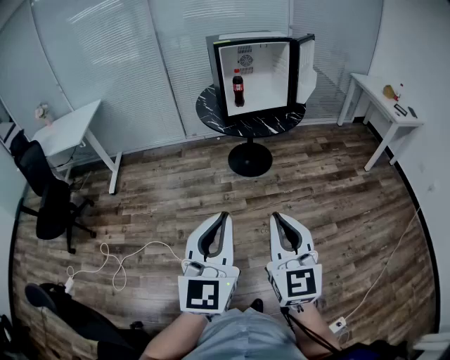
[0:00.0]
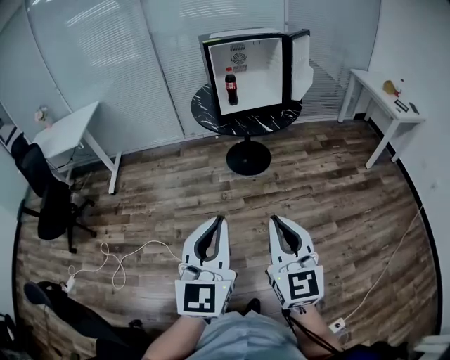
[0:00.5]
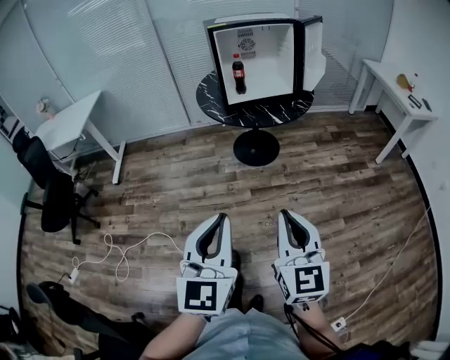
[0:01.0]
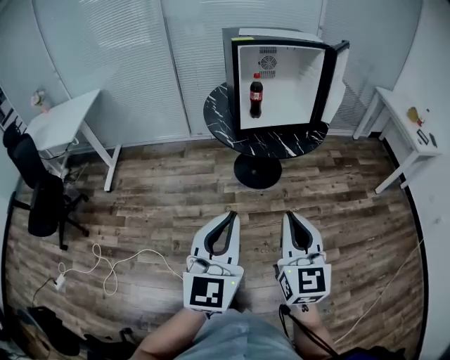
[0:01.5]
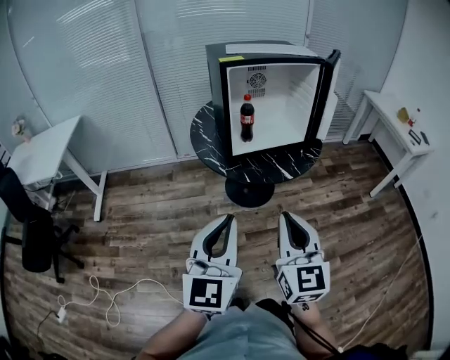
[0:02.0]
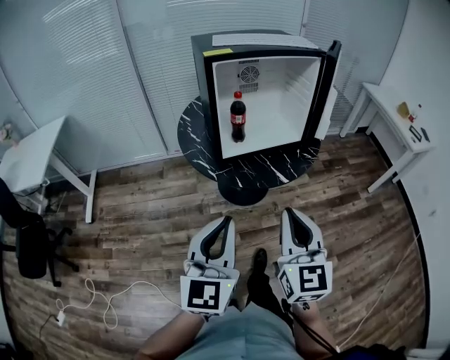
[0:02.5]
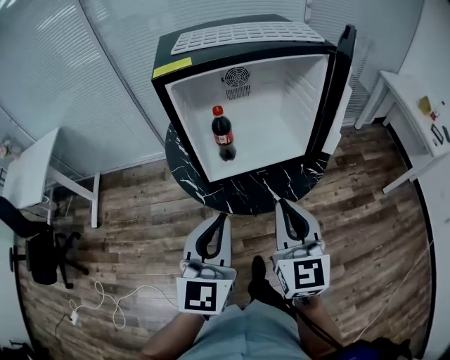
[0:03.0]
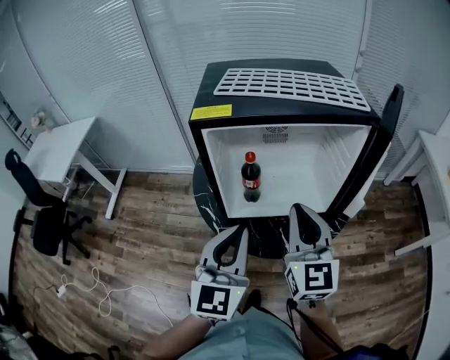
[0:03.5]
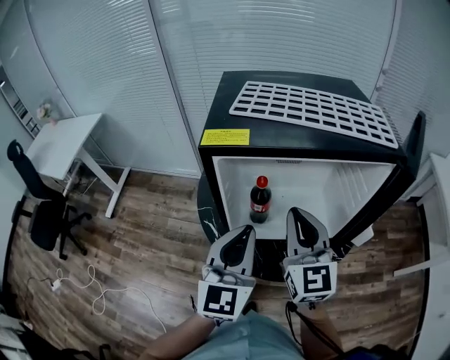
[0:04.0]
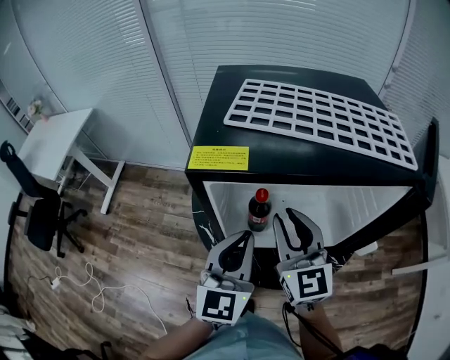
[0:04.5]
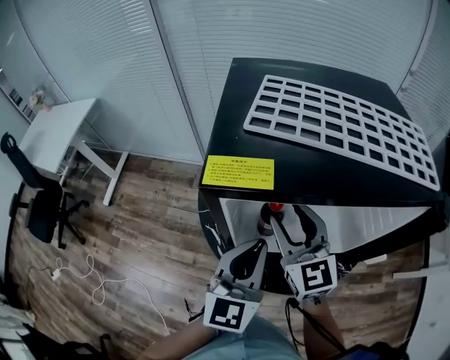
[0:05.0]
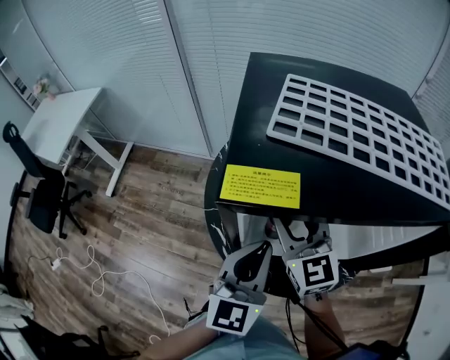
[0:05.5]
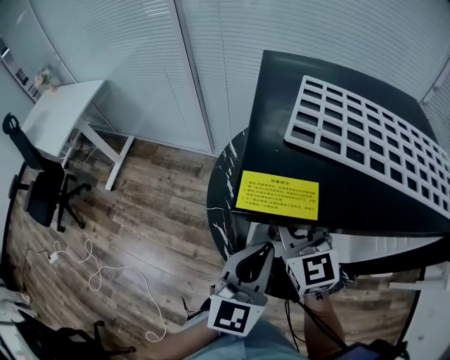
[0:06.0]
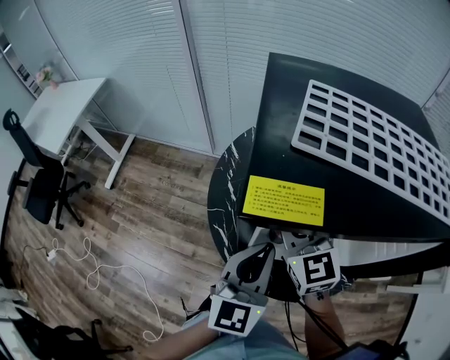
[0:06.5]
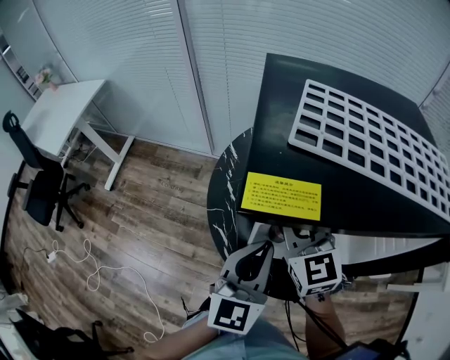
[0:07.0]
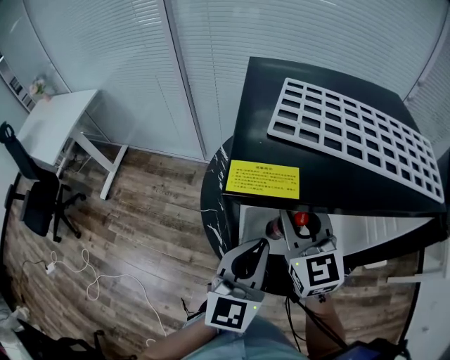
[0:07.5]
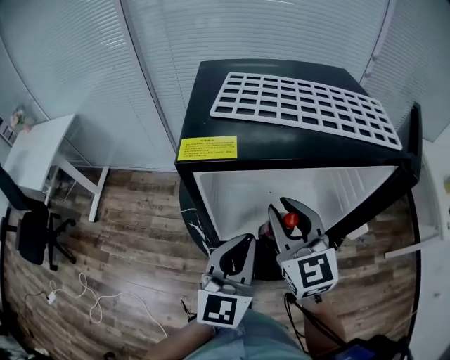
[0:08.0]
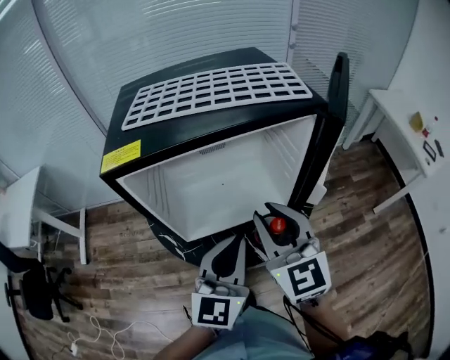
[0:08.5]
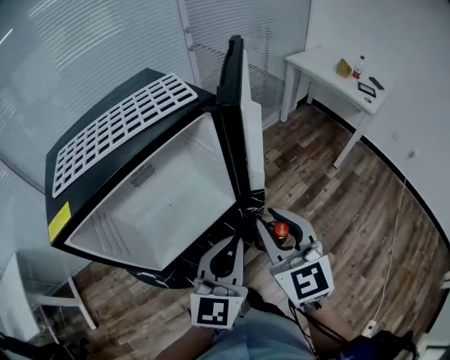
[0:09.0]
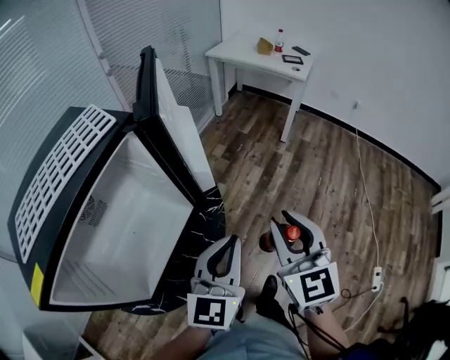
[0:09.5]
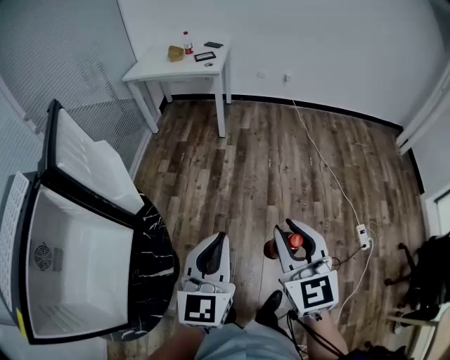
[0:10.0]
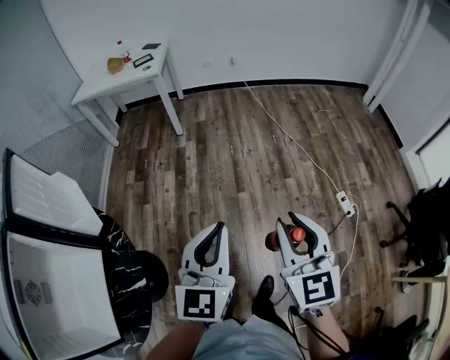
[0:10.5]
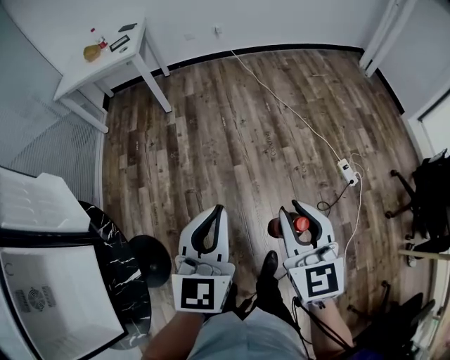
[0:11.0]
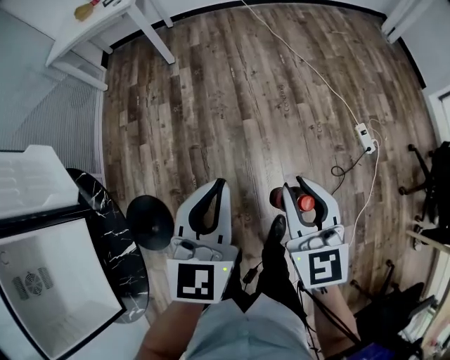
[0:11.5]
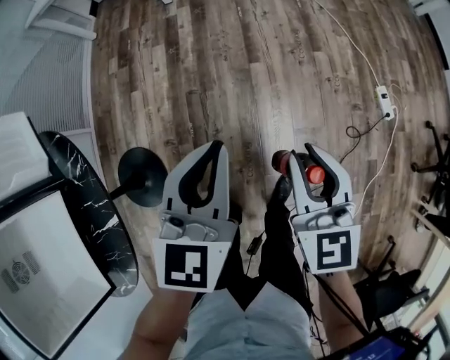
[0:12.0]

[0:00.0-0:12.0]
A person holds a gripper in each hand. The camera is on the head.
0:00.0 to 0:02.0: Both grippers move forward, some 35 cm.
0:02.0 to 0:04.0: Both grippers are carried forward, some 40 cm.
0:04.0 to 0:06.0: The left gripper moves forward and downward, roughly 10 cm. The right gripper is displaced forward, to the left and downward by approximately 20 cm, and opens its fingers.
0:06.0 to 0:08.0: The right gripper moves backward, to the right and upward, roughly 15 cm. Meanwhile the left gripper moves backward, about 5 cm.
0:08.0 to 0:10.0: The pair of grippers is taken roughly 50 cm. The right gripper changes its angle by about 90 degrees; the left gripper rotates about 80 degrees.
0:10.0 to 0:12.0: Both grippers travel together downward and to the right, roughly 30 cm. The left gripper rotates approximately 20 degrees; the right gripper changes its angle by approximately 20 degrees.

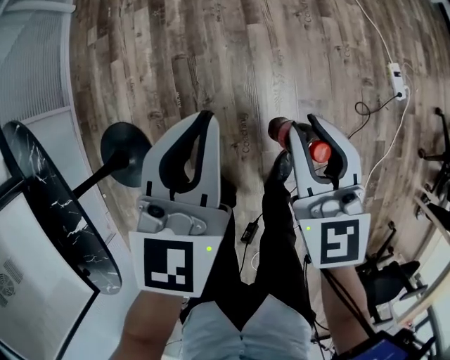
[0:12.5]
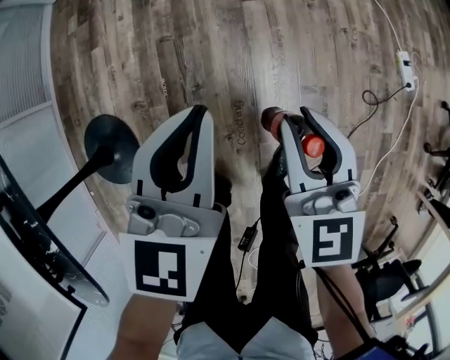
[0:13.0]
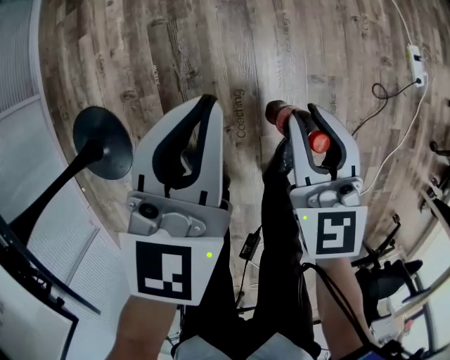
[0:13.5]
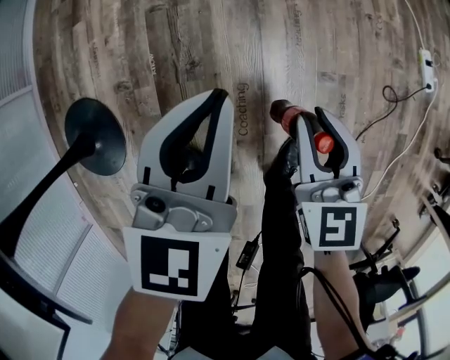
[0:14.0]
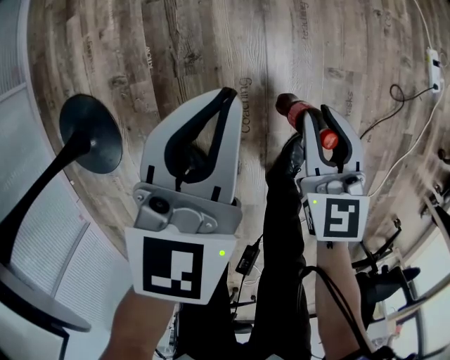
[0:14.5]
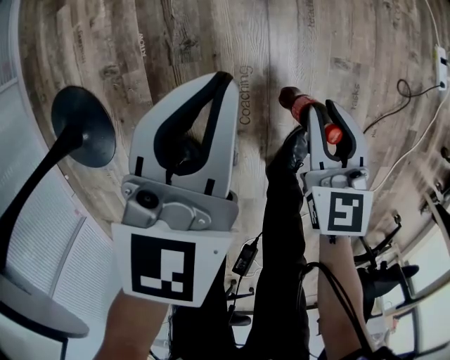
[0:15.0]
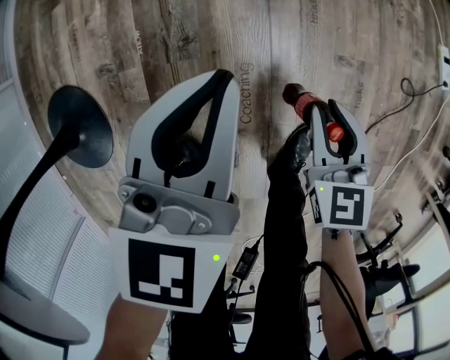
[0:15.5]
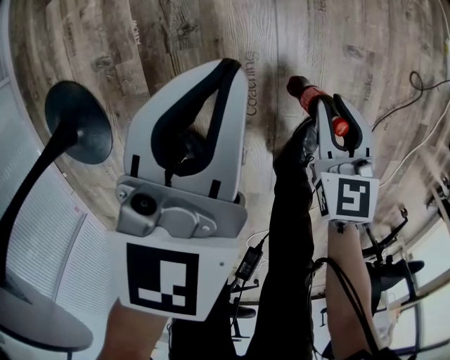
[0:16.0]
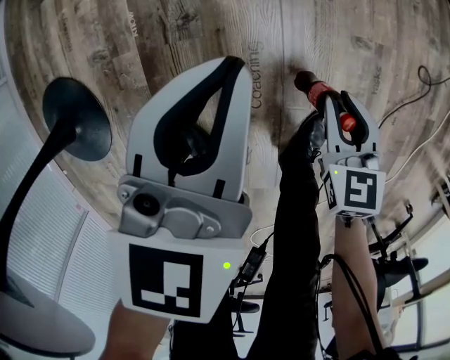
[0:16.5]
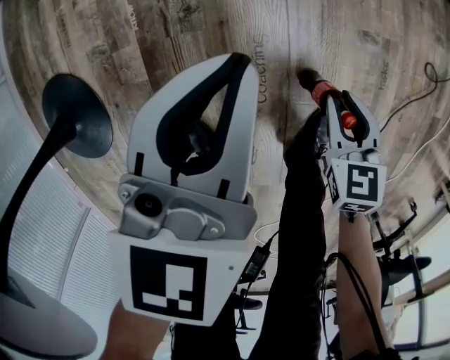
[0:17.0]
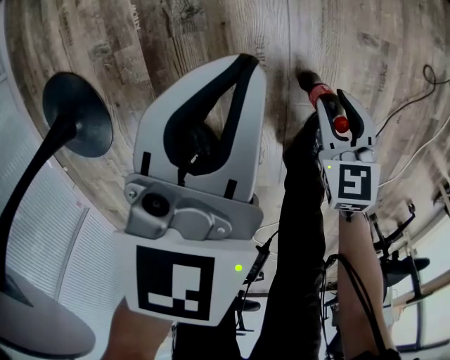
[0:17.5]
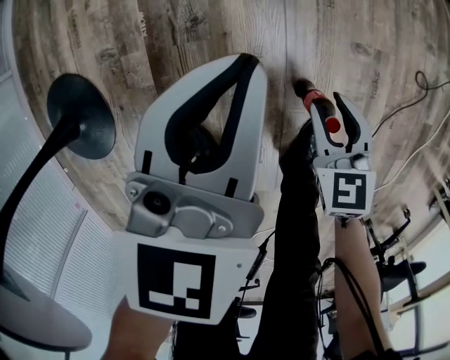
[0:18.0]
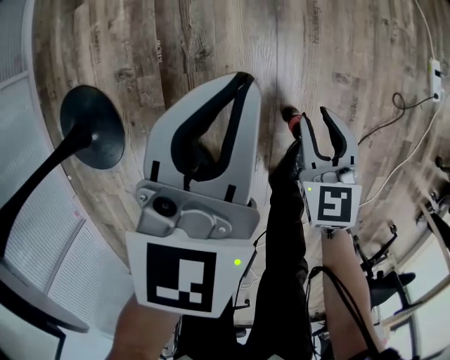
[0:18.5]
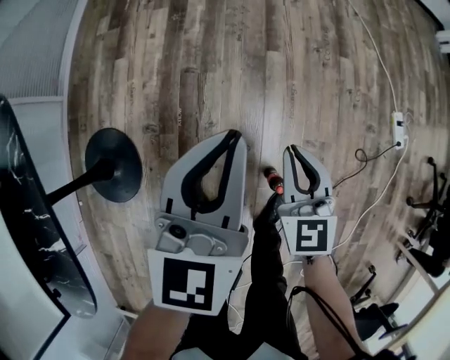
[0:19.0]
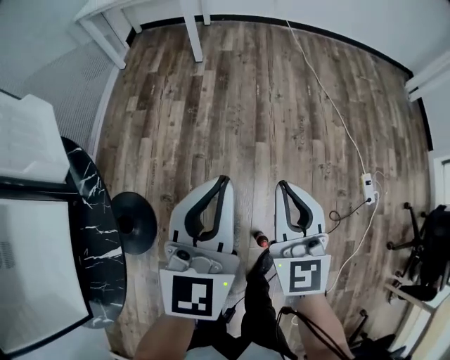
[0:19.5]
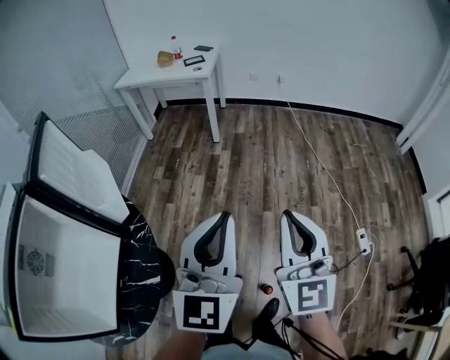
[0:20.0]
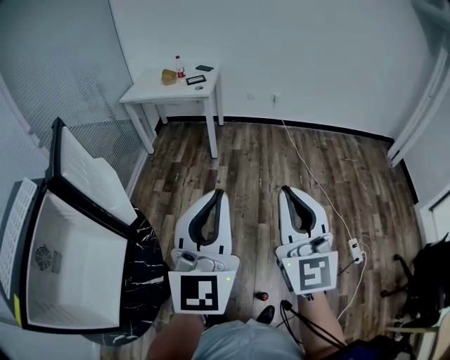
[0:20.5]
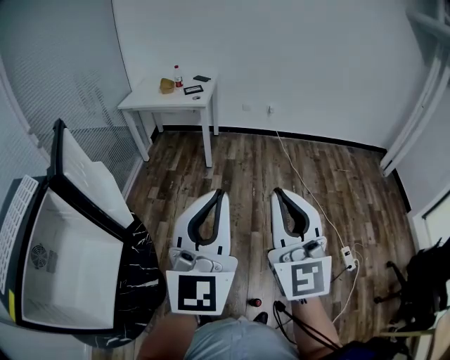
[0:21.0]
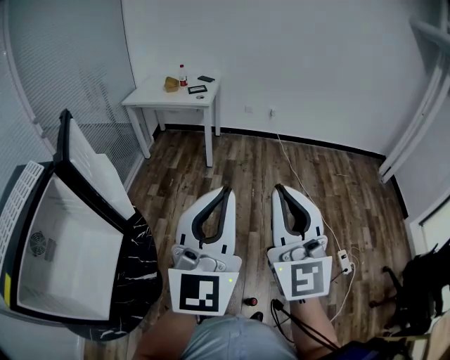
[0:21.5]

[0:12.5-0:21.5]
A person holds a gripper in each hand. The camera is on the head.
0:12.5 to 0:14.5: The grippers both shift downward by approximately 30 cm.
0:14.5 to 0:17.0: The left gripper moves downward, about 10 cm. The right gripper travels downward and backward by approximately 20 cm.
0:17.0 to 0:19.5: Both grippers move upward, about 60 cm. The left gripper tips its fingers upward by about 30 degrees; the right gripper points its fingers approximately 50 degrees further upward, and closes.
0:19.5 to 0:21.5: The grippers both shift upward by some 35 cm. The right gripper changes its angle by about 30 degrees; the left gripper turns by about 20 degrees.

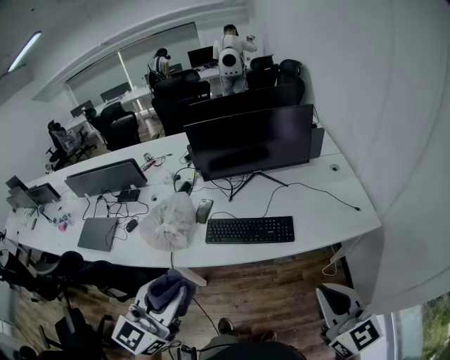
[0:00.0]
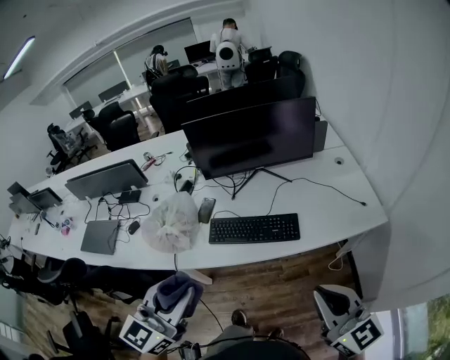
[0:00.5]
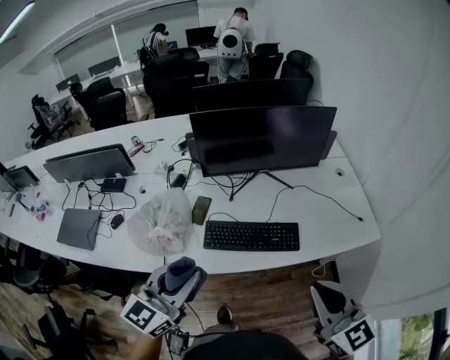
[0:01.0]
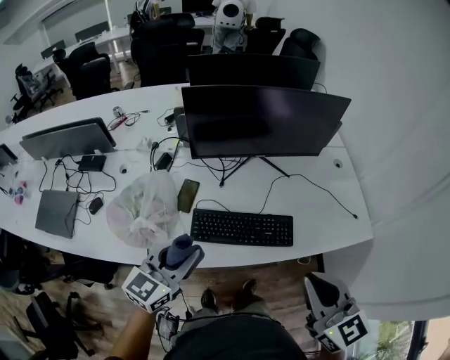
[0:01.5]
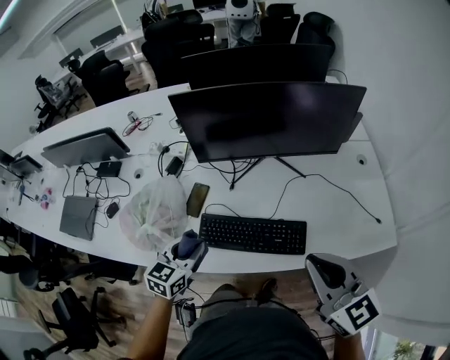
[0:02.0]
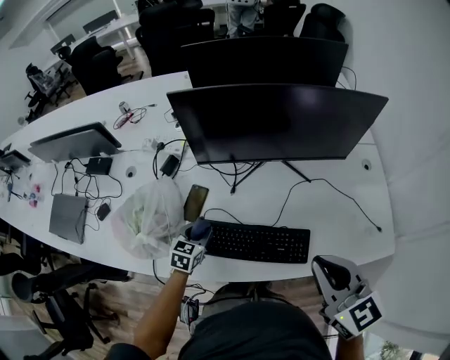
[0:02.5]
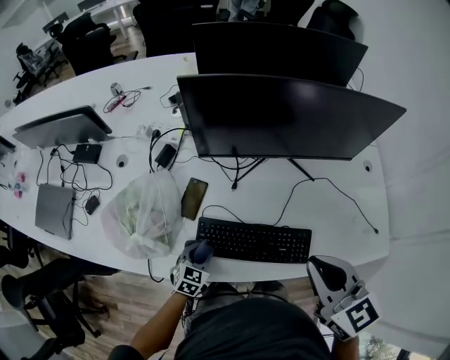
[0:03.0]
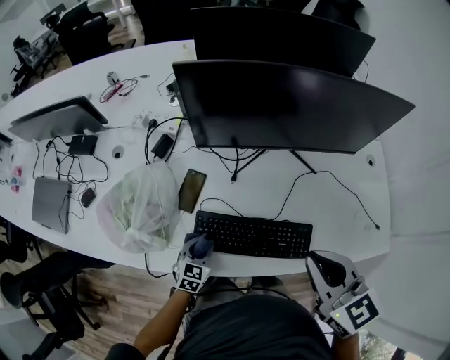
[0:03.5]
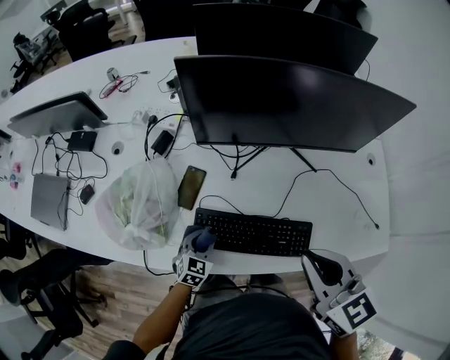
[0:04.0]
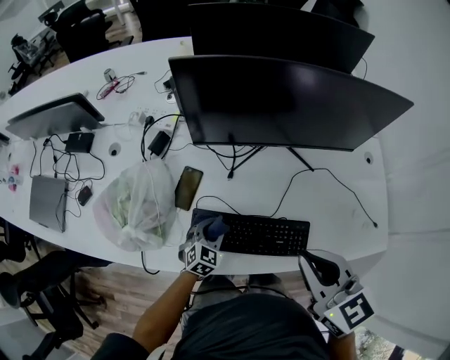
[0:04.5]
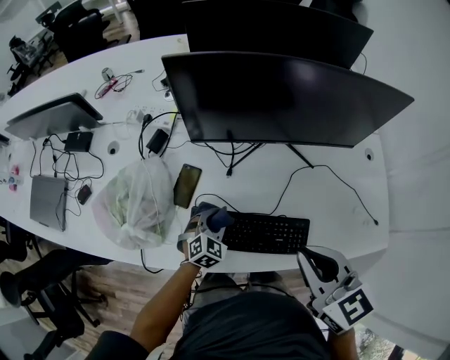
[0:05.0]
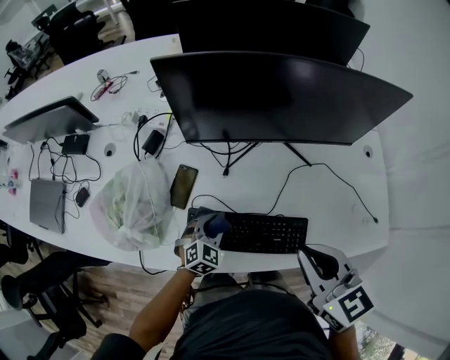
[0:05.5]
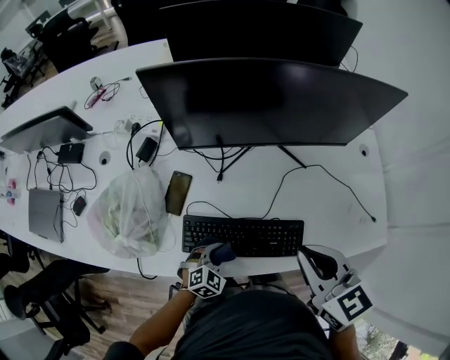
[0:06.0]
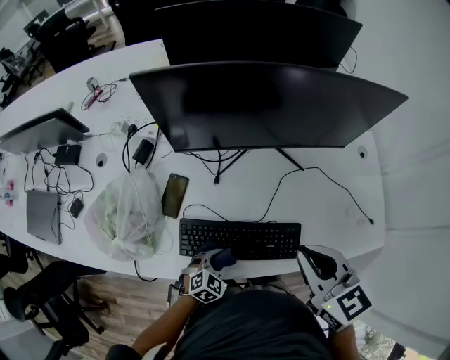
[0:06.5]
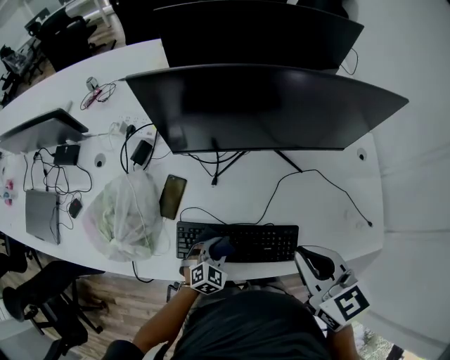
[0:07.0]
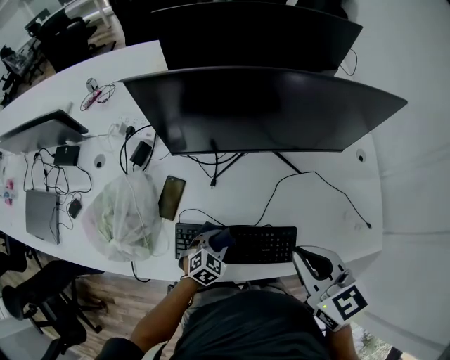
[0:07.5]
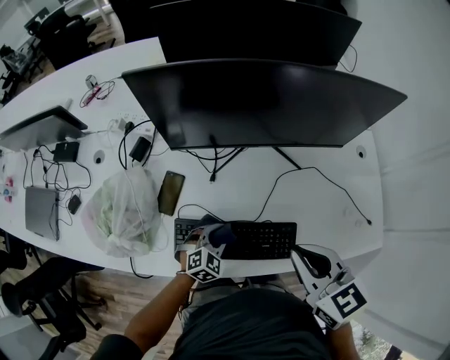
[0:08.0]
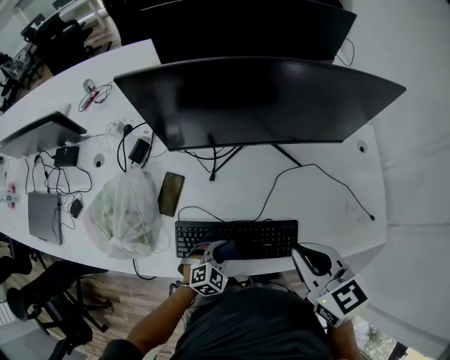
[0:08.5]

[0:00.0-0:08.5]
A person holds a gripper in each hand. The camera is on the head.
0:00.0 to 0:02.0: The right gripper heads forward, covering about 25 cm. The left gripper travels forward and downward by approximately 40 cm, and tilts its fingers approximately 30 degrees downward.
0:02.0 to 0:04.0: The left gripper heads downward, covering approximately 20 cm, while the right gripper shifts approximately 15 cm forward, to the left and downward.
0:04.0 to 0:06.5: The left gripper moves to the right, some 10 cm, and turns by roughly 30 degrees. The right gripper shifts by some 5 cm.
0:06.5 to 0:08.5: The left gripper moves about 10 cm forward and comes back.
